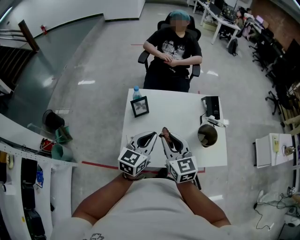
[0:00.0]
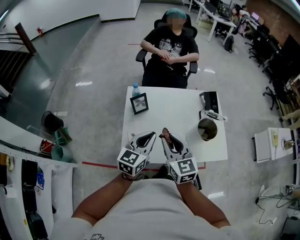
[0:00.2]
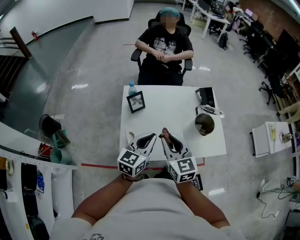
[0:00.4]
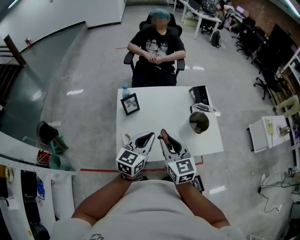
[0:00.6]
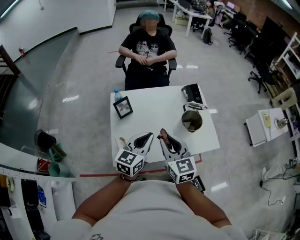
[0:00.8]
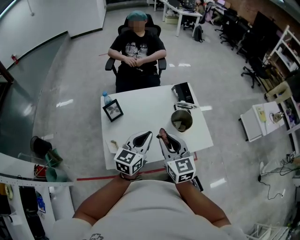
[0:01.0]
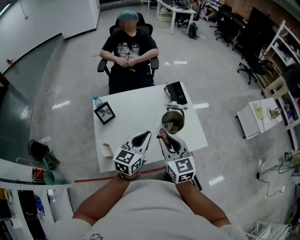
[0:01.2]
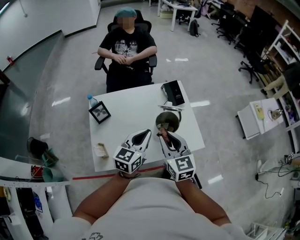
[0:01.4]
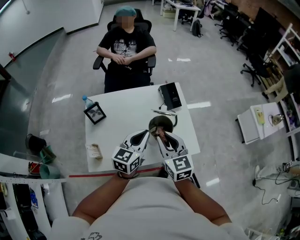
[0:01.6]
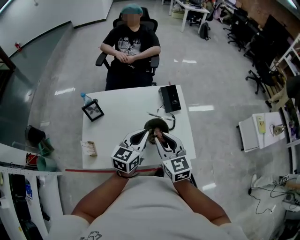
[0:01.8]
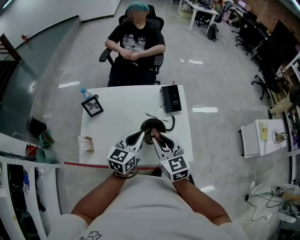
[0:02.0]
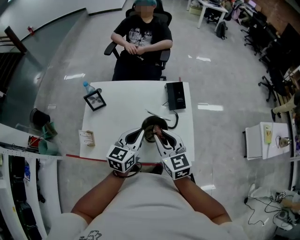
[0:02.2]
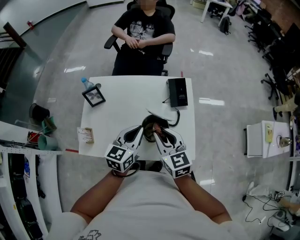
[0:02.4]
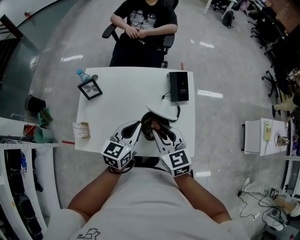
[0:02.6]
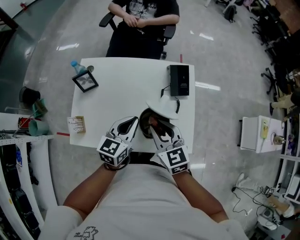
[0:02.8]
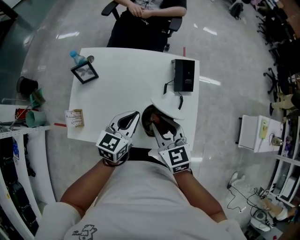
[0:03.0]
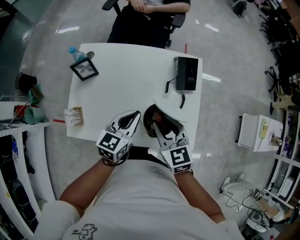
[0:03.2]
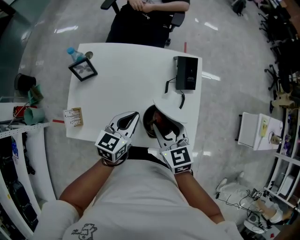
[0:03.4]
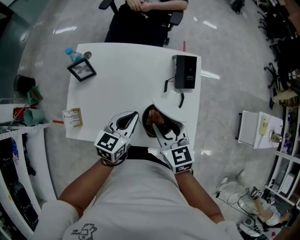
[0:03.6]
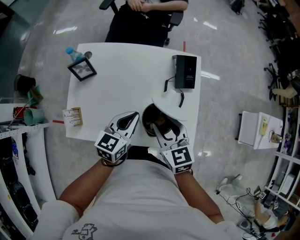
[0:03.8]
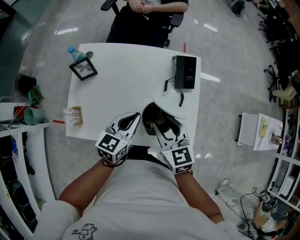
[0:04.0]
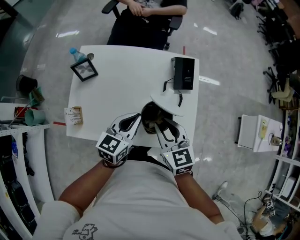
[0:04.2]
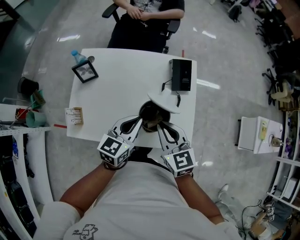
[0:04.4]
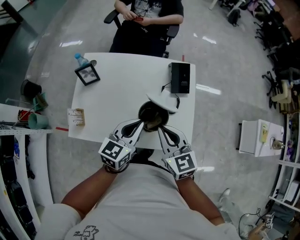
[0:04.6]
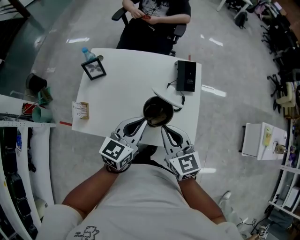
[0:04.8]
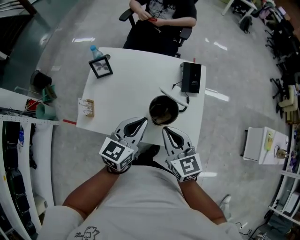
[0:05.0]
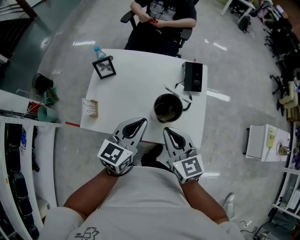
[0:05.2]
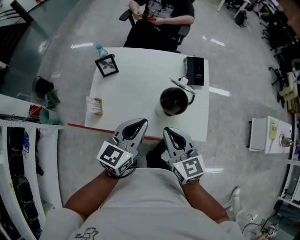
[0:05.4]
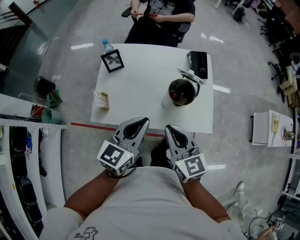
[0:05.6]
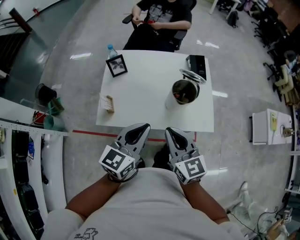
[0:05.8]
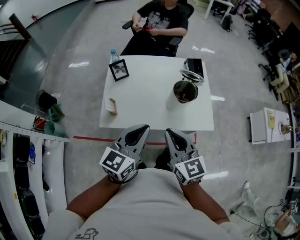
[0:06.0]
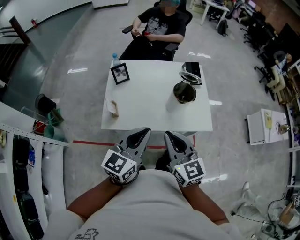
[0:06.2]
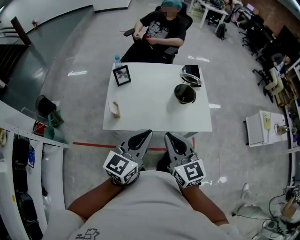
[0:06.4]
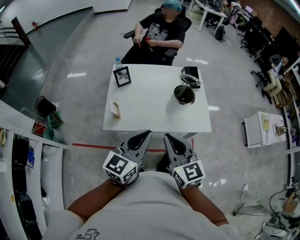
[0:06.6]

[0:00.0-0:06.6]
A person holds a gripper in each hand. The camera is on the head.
0:00.0 to 0:01.6: Both grippers move to the right, roughly 25 cm.
0:01.6 to 0:03.2: The grippers both shift downward and forward by about 10 cm. The right gripper rotates roughly 20 degrees.
0:03.2 to 0:05.0: Both grippers travel together backward and upward, approximately 10 cm. The right gripper closes its fingers.
0:05.0 to 0:06.6: The grippers both shift backward, to the left and upward by some 25 cm.

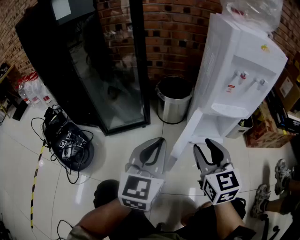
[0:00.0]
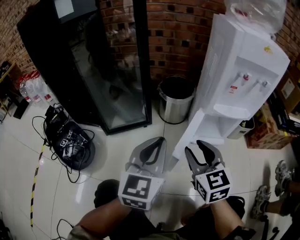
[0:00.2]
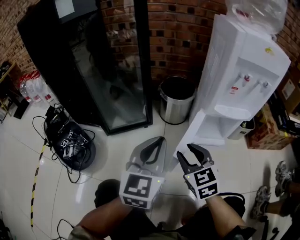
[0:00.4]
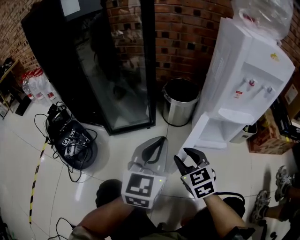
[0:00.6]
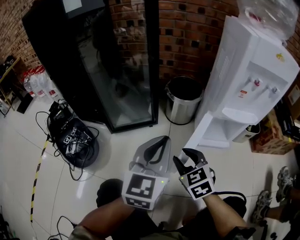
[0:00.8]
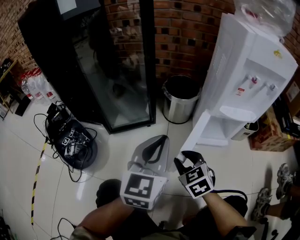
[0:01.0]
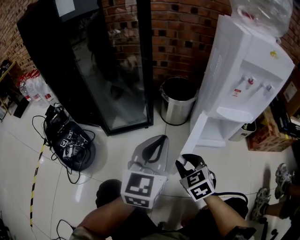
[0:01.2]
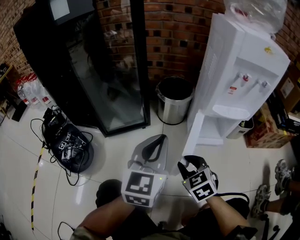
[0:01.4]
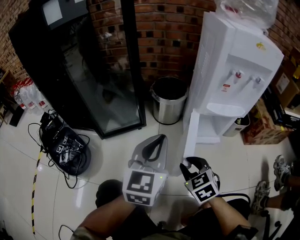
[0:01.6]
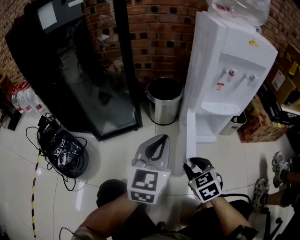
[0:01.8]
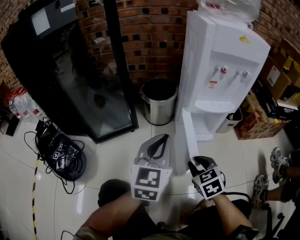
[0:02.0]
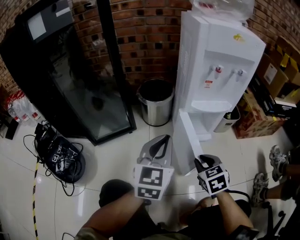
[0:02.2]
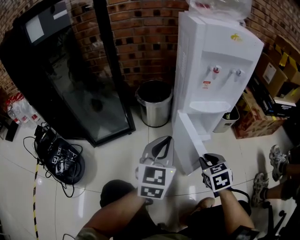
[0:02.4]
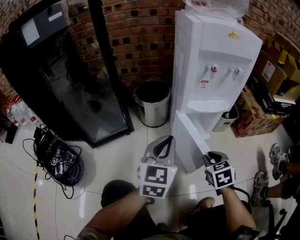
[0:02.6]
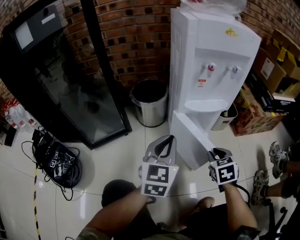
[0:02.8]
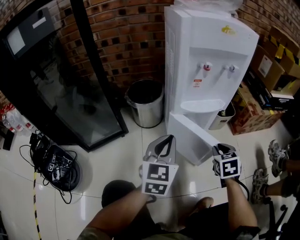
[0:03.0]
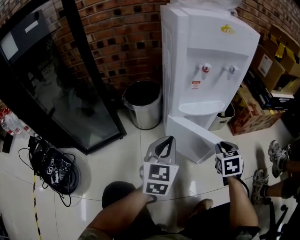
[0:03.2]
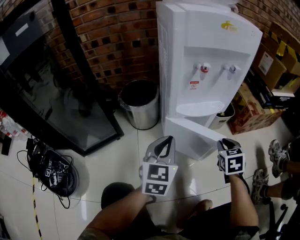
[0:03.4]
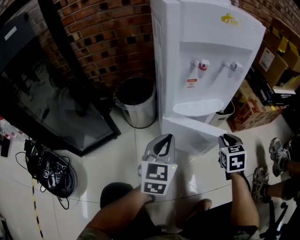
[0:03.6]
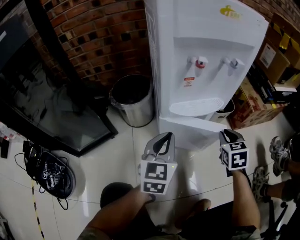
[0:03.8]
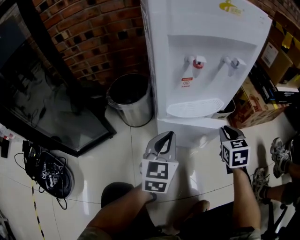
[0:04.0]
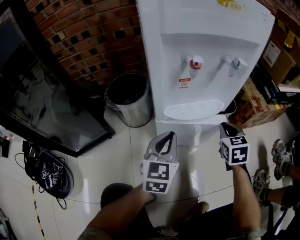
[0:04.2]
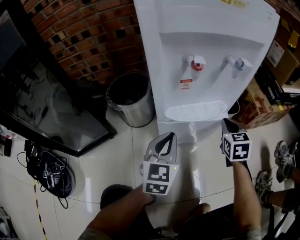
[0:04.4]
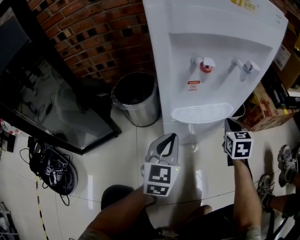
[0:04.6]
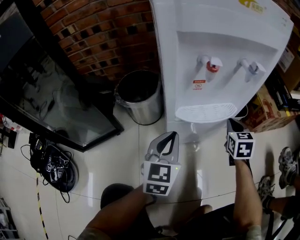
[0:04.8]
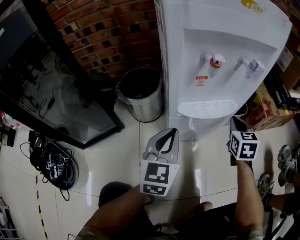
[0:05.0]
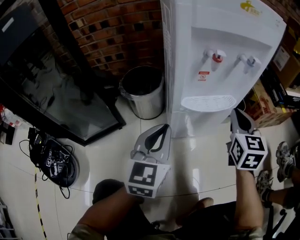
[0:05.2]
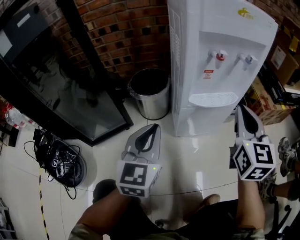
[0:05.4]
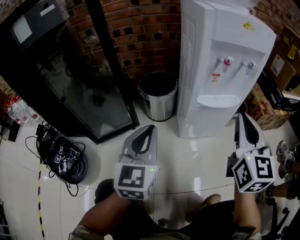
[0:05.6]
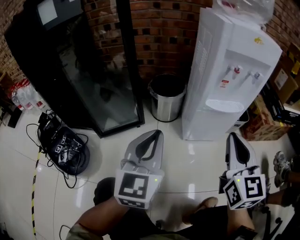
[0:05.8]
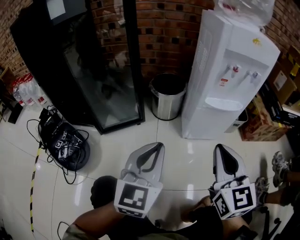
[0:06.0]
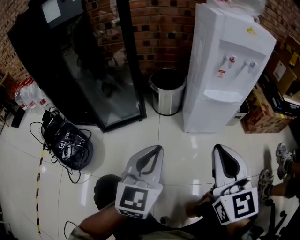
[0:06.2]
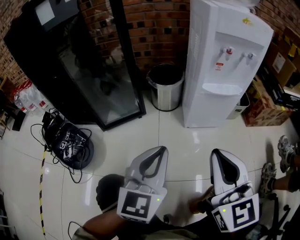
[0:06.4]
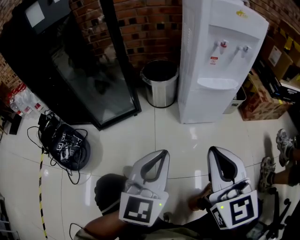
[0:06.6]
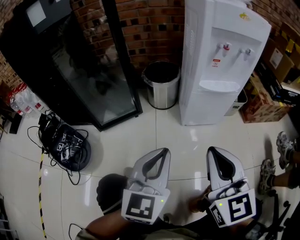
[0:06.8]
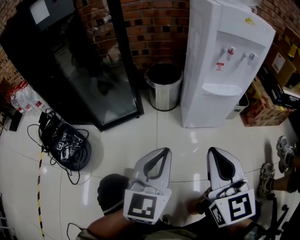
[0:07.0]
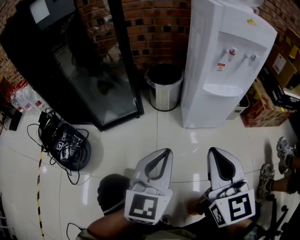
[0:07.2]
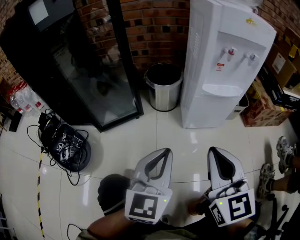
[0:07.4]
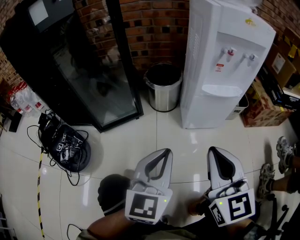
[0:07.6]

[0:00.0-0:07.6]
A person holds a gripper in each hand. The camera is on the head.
0:00.0 to 0:01.6: The right gripper shifts approximately 15 cm downward, and rotates some 30 degrees.
0:01.6 to 0:03.0: The right gripper travels to the right by some 25 cm, and swivels roughly 40 degrees; the left gripper heads to the right, forward and downward, covering approximately 15 cm.
0:03.0 to 0:04.6: The left gripper heads forward and downward, covering approximately 15 cm; the right gripper travels forward by roughly 20 cm.
0:04.6 to 0:06.0: Both grippers move backward, to the left and upward, approximately 40 cm. The right gripper changes its angle by roughly 30 degrees.

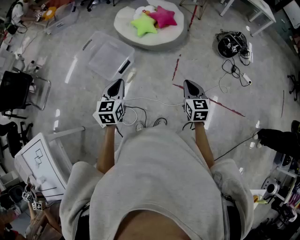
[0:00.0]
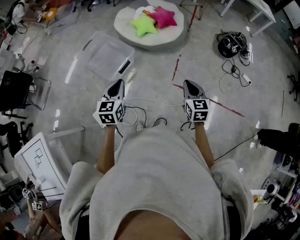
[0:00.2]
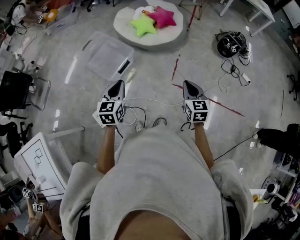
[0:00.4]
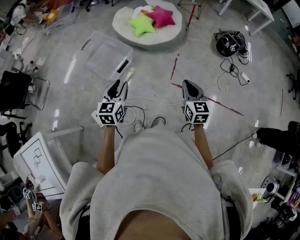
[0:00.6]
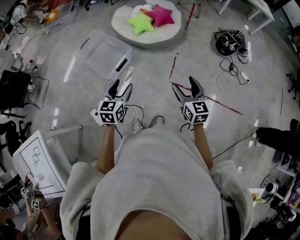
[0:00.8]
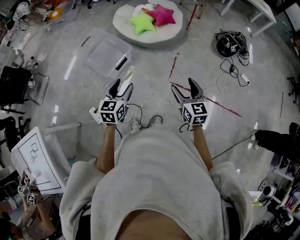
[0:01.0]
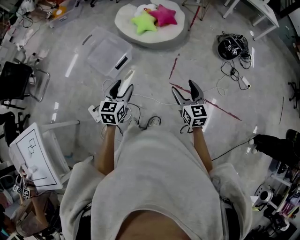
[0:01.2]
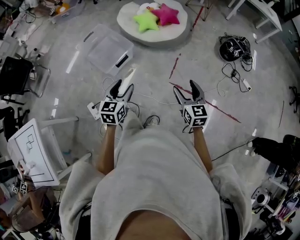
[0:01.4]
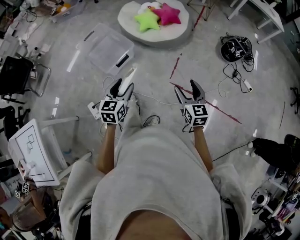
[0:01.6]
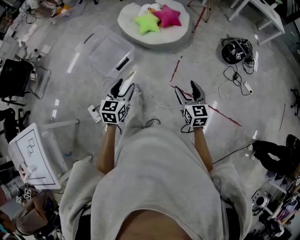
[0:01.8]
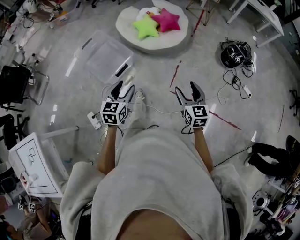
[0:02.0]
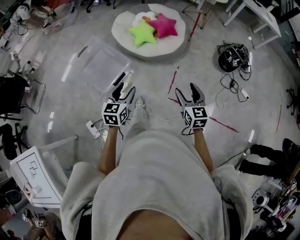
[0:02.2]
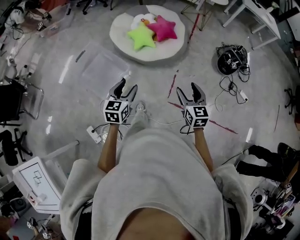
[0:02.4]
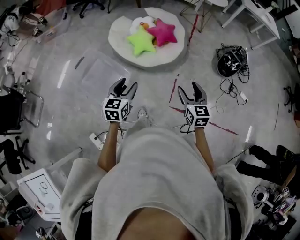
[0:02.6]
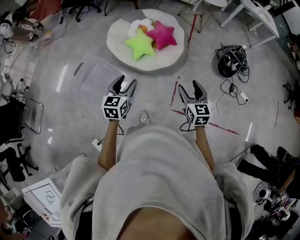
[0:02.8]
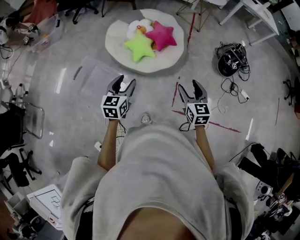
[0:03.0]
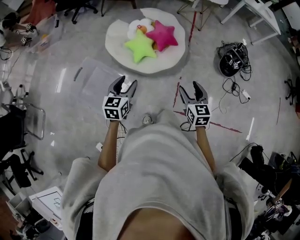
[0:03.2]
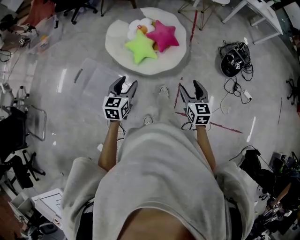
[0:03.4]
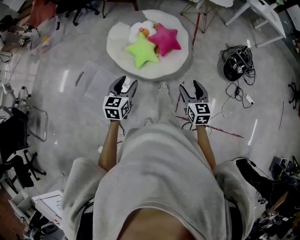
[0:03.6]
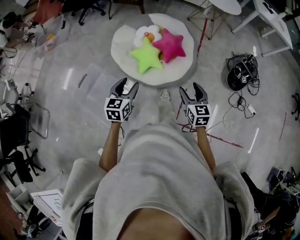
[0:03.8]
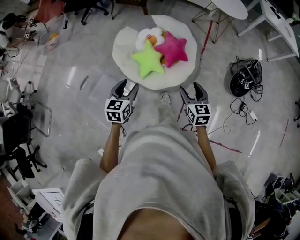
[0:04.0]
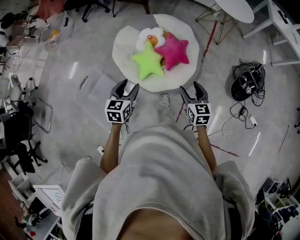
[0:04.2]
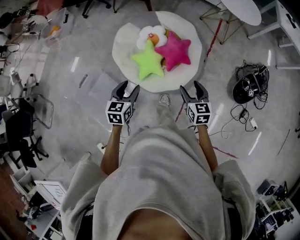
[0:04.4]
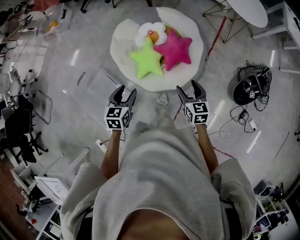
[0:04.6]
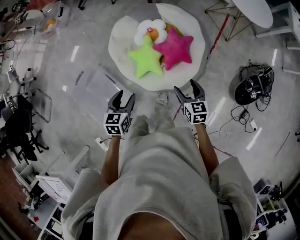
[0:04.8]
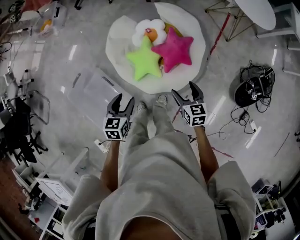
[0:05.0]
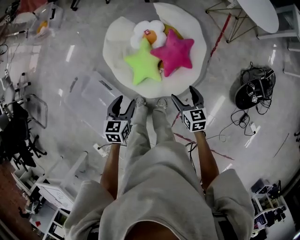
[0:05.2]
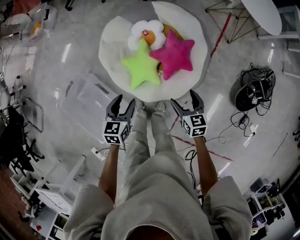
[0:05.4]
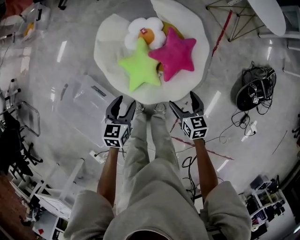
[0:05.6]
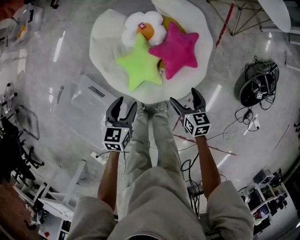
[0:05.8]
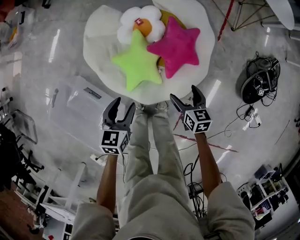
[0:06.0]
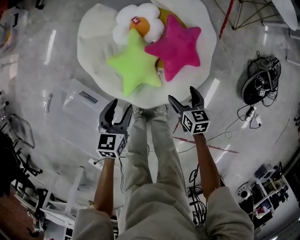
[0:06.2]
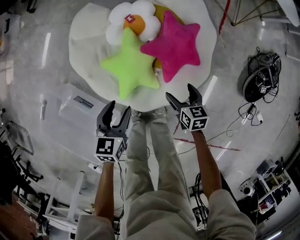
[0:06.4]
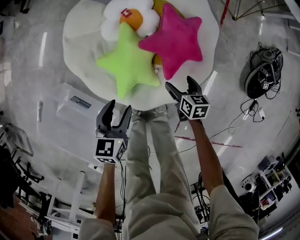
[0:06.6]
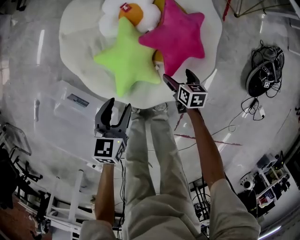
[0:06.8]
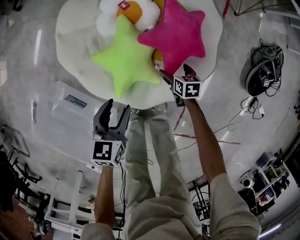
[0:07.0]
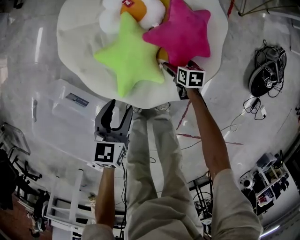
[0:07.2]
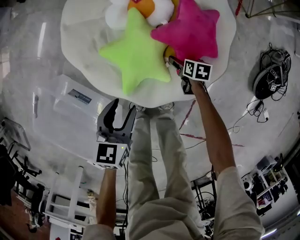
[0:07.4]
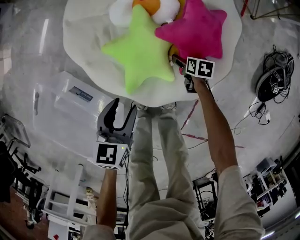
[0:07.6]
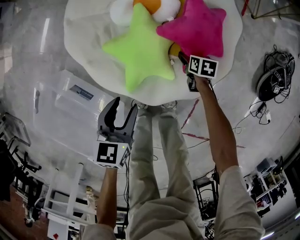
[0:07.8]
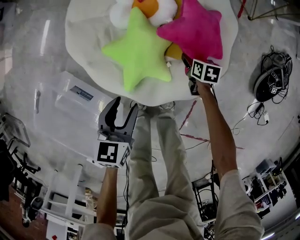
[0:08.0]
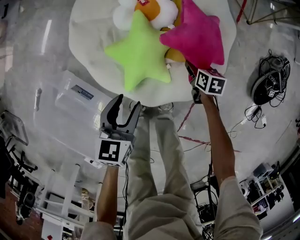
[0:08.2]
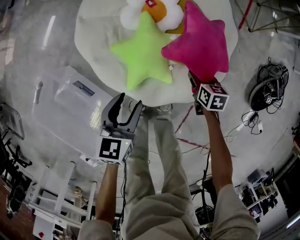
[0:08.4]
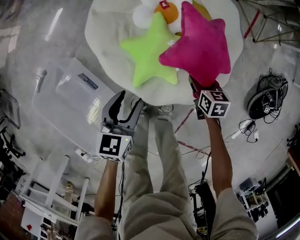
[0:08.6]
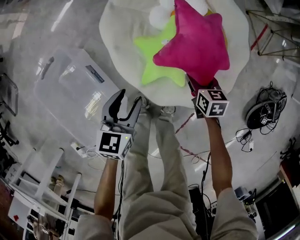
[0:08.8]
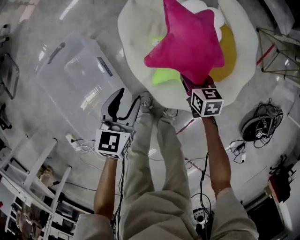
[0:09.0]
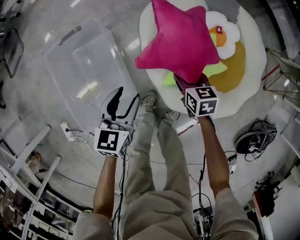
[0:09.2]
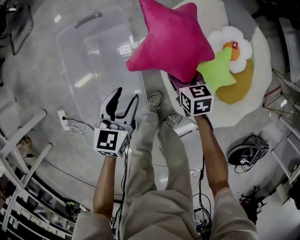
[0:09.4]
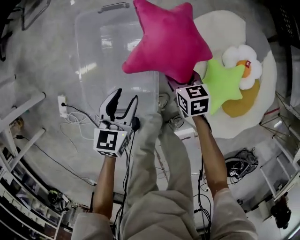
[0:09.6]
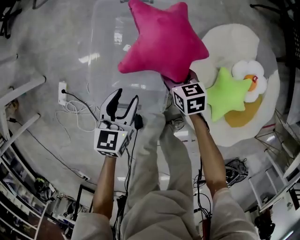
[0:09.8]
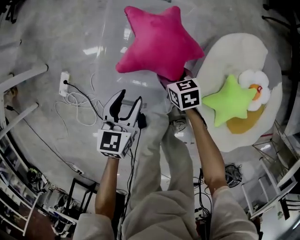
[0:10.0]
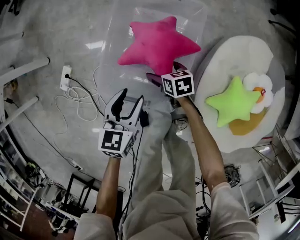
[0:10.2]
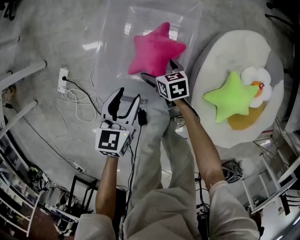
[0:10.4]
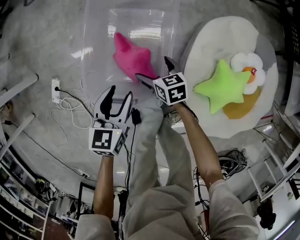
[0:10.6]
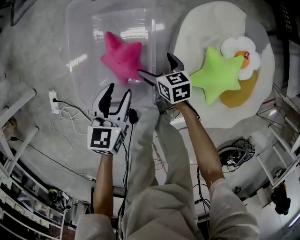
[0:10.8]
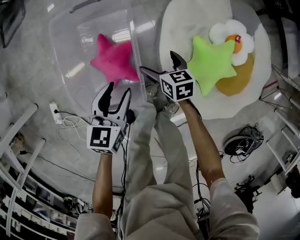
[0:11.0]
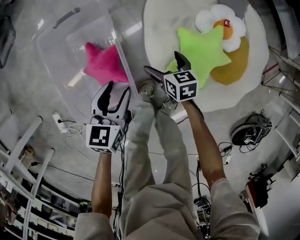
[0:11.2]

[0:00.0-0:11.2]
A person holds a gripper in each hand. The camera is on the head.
0:00.0 to 0:01.6: The right gripper opens its fingers, while the left gripper moves to the right, some 10 cm, and opens up.
0:01.6 to 0:03.2: Both grippers are carried forward, some 50 cm.
0:03.2 to 0:04.8: Both grippers travel together forward, roughly 35 cm. The right gripper swivels about 20 degrees, while the left gripper turns by roughly 20 degrees.
0:04.8 to 0:06.4: The grippers both shift downward by roughly 35 cm.
0:06.4 to 0:08.0: The left gripper ends up roughly 5 cm from where it was. The right gripper shifts roughly 20 cm downward and forward, and closes up.
0:08.0 to 0:09.6: The right gripper shifts by roughly 60 cm, and twists some 60 degrees counterclockwise, seen from behind, while the left gripper shifts by roughly 40 cm, and changes its angle by roughly 50 degrees.
0:09.6 to 0:11.2: The right gripper opens; the left gripper changes place by roughly 10 cm.
